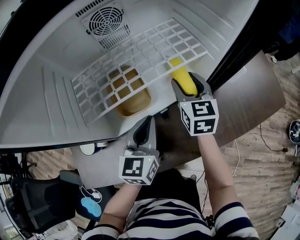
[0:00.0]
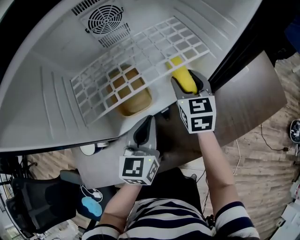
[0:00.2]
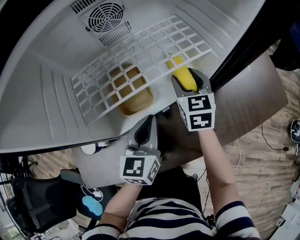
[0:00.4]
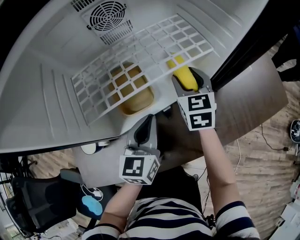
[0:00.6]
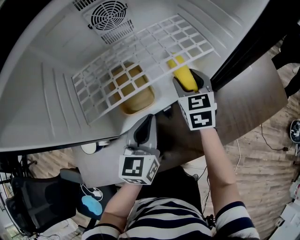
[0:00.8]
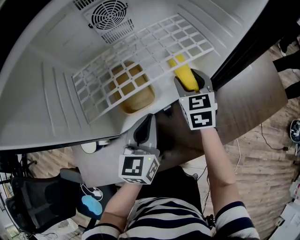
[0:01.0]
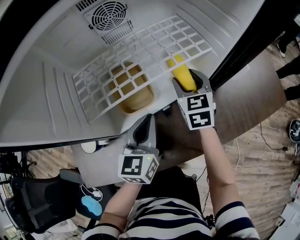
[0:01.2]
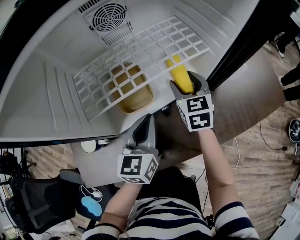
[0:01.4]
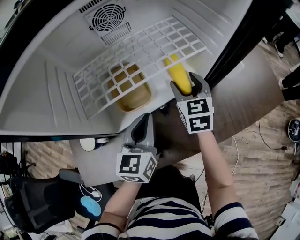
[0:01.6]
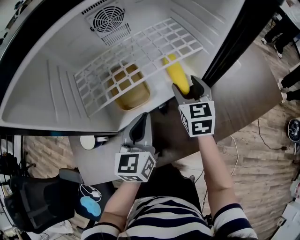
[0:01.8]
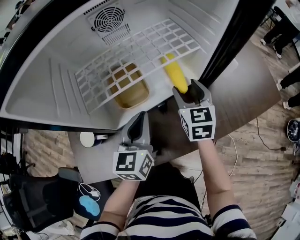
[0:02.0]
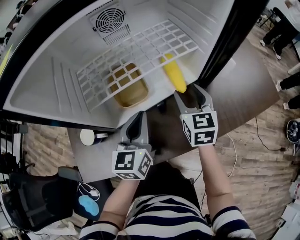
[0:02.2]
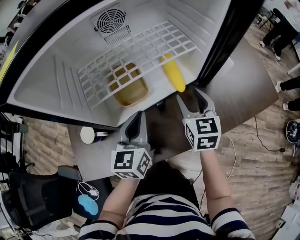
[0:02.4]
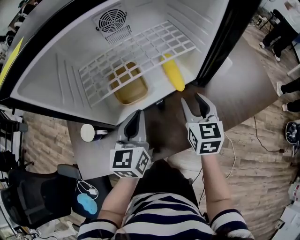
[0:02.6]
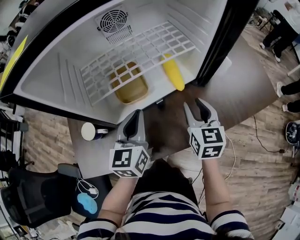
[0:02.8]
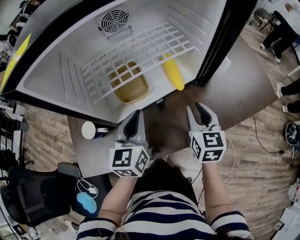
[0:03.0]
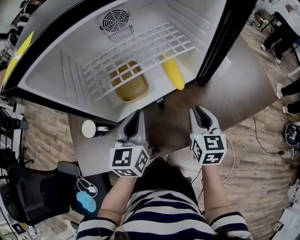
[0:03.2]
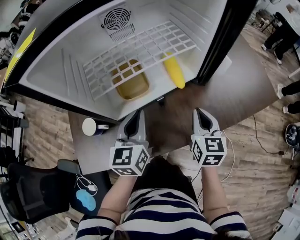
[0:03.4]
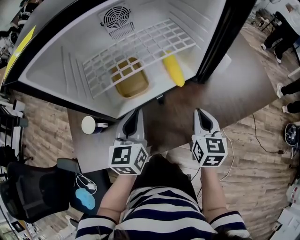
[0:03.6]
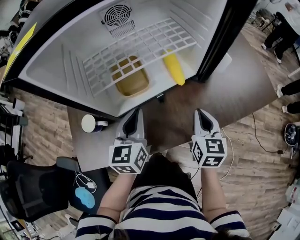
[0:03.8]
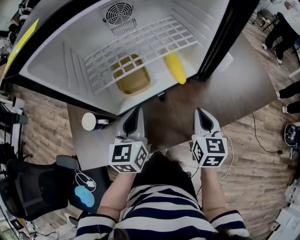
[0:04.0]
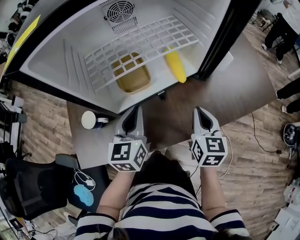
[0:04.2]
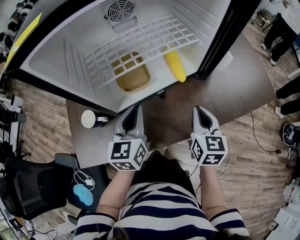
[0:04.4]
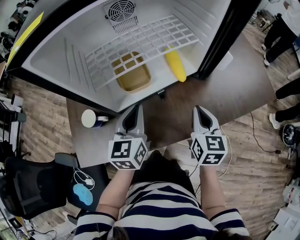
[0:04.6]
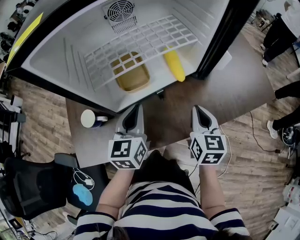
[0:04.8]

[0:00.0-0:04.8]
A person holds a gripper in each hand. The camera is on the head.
0:00.0 to 0:01.6: The grippers move only a little.
0:01.6 to 0:03.2: The right gripper shifts some 15 cm backward and to the right, and closes up, while the left gripper changes place by roughly 5 cm.
0:03.2 to 0:04.8: The grippers move only a little.

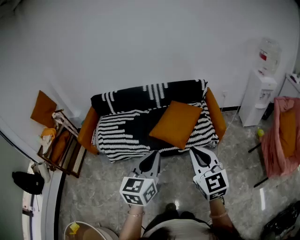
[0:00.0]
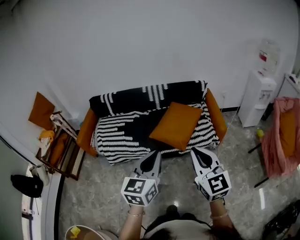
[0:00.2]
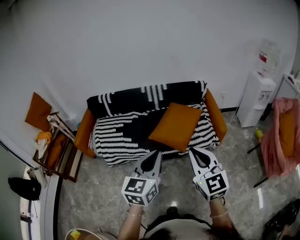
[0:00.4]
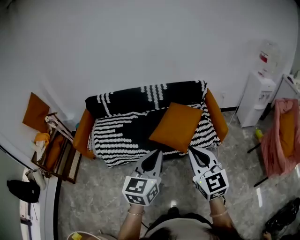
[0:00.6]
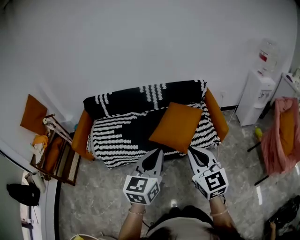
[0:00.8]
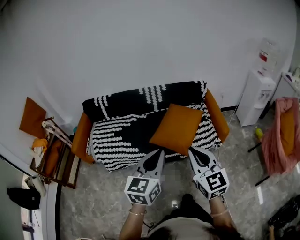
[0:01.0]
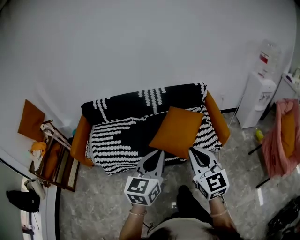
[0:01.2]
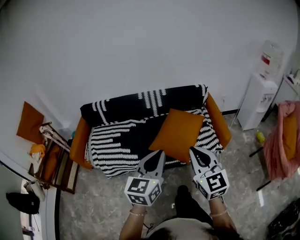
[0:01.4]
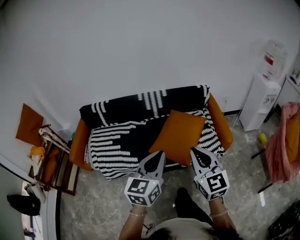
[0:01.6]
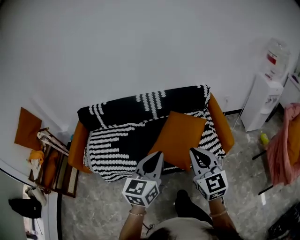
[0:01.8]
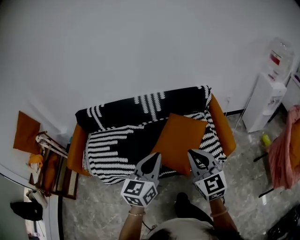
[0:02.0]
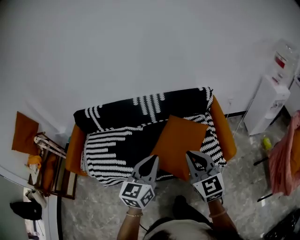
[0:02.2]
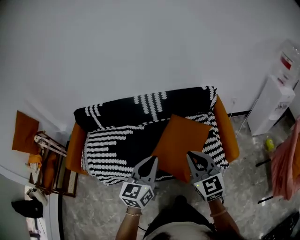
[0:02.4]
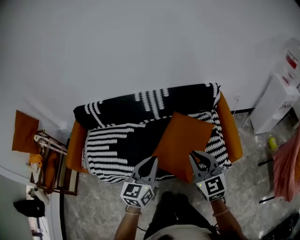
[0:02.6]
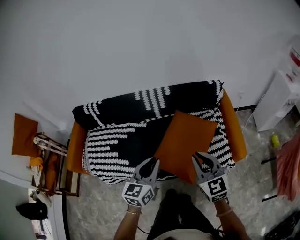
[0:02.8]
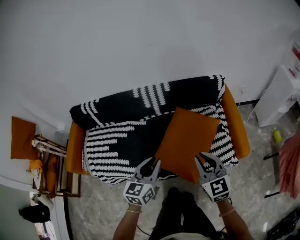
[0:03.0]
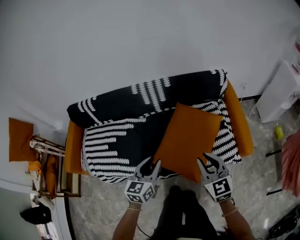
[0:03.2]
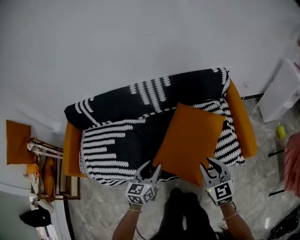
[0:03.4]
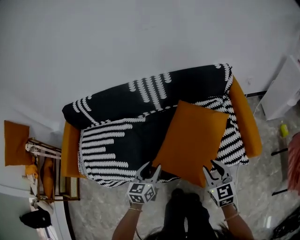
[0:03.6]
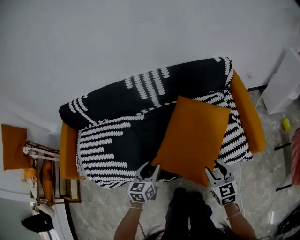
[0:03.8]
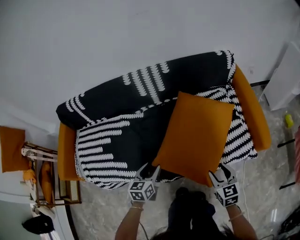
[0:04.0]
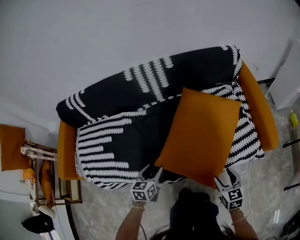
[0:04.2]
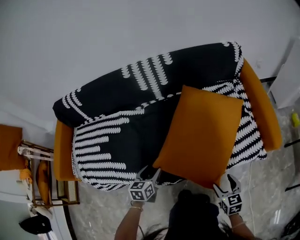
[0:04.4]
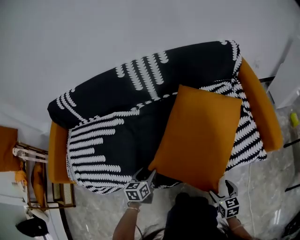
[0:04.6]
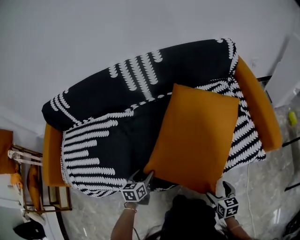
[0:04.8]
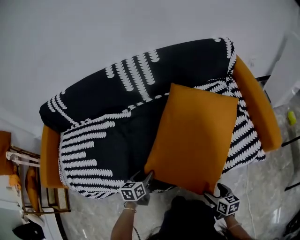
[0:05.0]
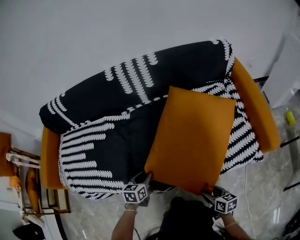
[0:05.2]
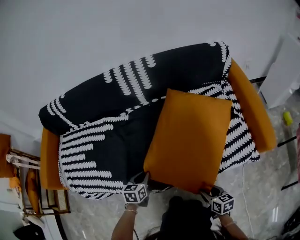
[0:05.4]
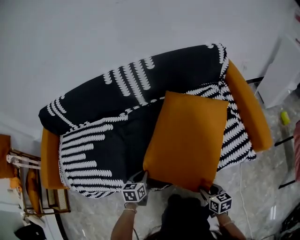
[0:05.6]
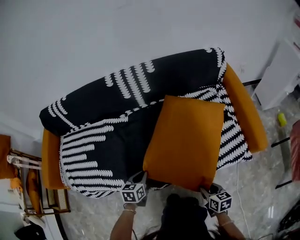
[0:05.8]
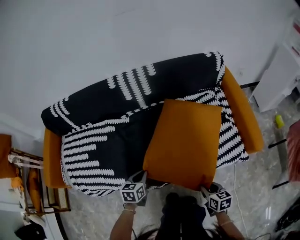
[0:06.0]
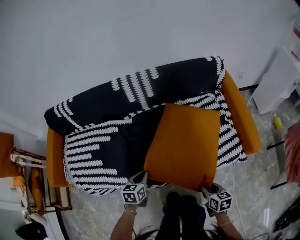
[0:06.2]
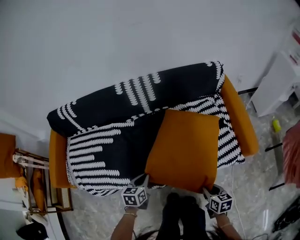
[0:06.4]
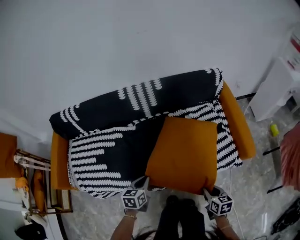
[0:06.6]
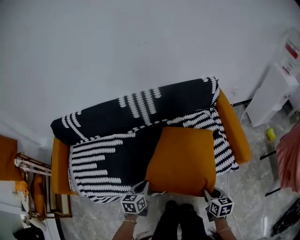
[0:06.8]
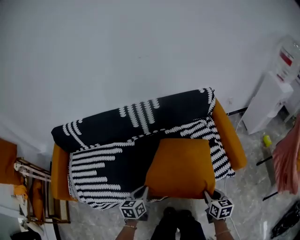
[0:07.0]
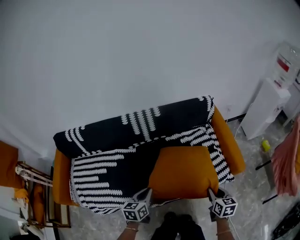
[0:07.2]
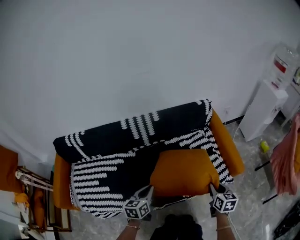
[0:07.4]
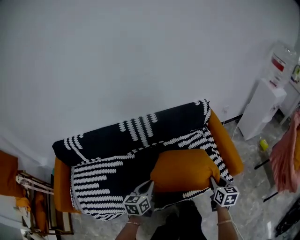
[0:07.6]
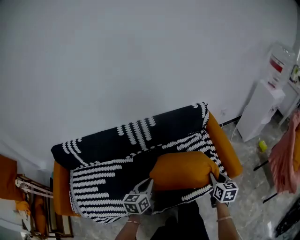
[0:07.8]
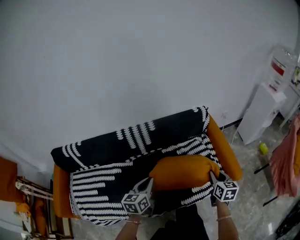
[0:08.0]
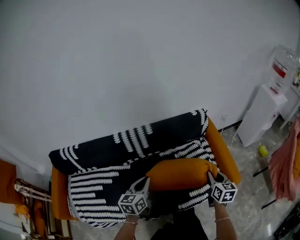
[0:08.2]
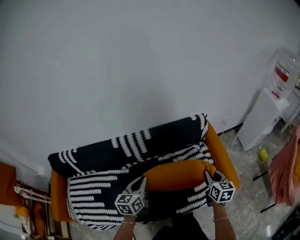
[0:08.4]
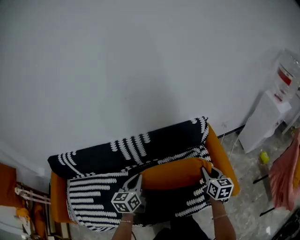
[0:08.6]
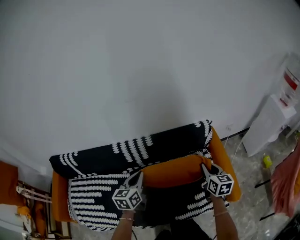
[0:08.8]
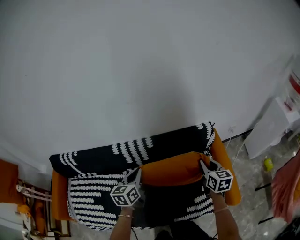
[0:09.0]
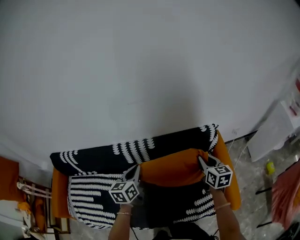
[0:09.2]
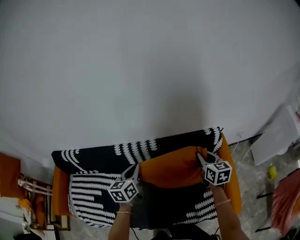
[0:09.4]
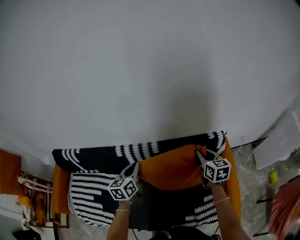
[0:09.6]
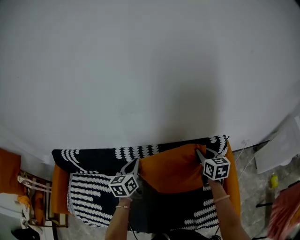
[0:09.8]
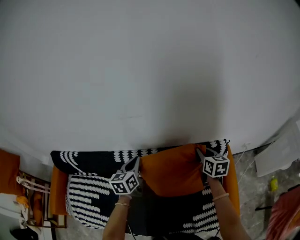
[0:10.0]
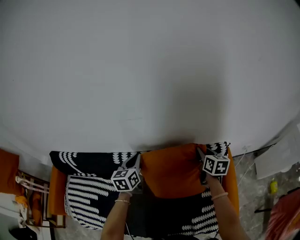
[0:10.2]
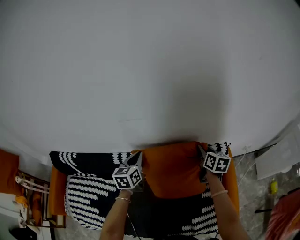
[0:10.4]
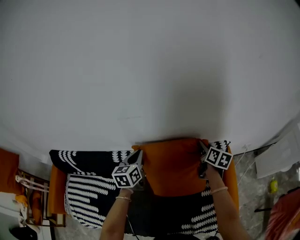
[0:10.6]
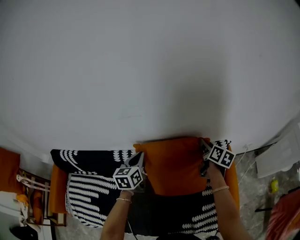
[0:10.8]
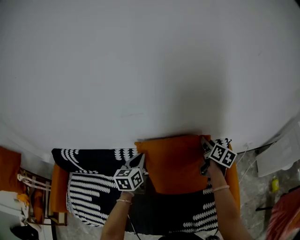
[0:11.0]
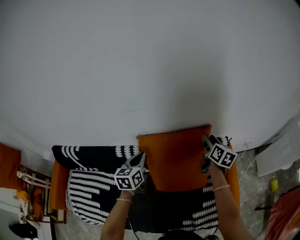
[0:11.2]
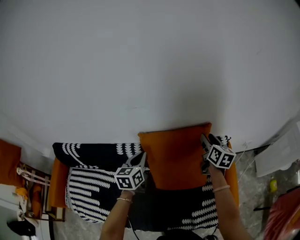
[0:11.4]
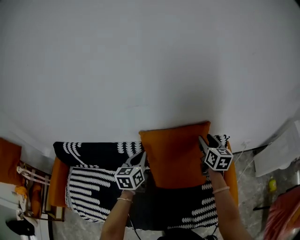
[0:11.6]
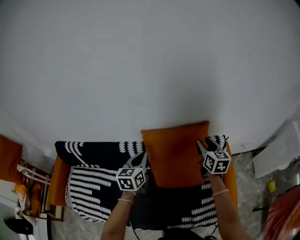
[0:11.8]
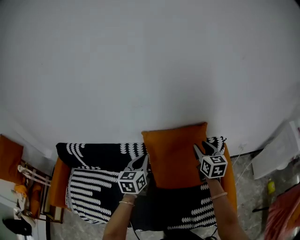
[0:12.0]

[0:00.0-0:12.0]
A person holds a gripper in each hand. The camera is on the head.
0:00.0 to 0:01.6: The grippers both shift forward by roughly 25 cm.
0:01.6 to 0:03.0: The grippers both shift forward and downward by about 35 cm.
0:03.0 to 0:04.4: The two grippers go approximately 50 cm downward. The left gripper rotates approximately 30 degrees, and opens its fingers. Meanwhile the right gripper turns by roughly 30 degrees, and opens.
0:04.4 to 0:06.0: The left gripper reaches approximately 10 cm downward, then returns, and closes; the right gripper travels downward and back again, about 10 cm each way, and closes.
0:06.0 to 0:07.6: Both grippers move upward, some 30 cm. The right gripper changes its angle by about 30 degrees. Meanwhile the left gripper swivels about 20 degrees.
0:07.6 to 0:09.0: The grippers both shift forward by some 30 cm.
0:09.0 to 0:10.4: Both grippers travel together forward, approximately 25 cm.
0:10.4 to 0:12.0: The grippers both shift backward and upward by approximately 20 cm. The right gripper changes its angle by some 20 degrees.

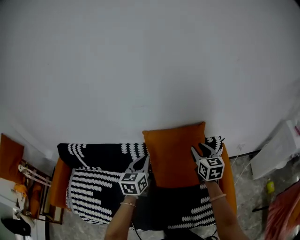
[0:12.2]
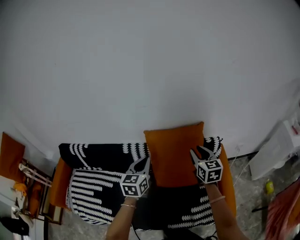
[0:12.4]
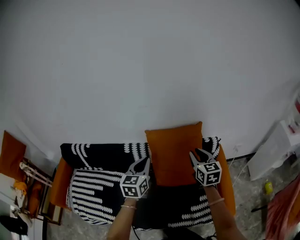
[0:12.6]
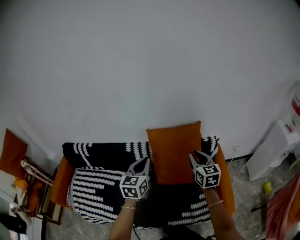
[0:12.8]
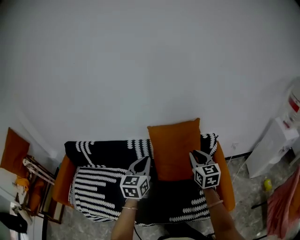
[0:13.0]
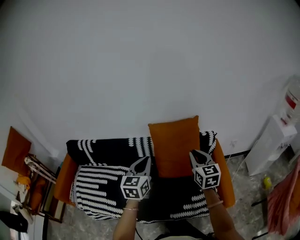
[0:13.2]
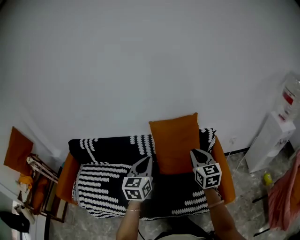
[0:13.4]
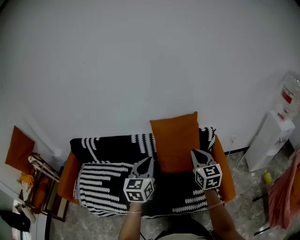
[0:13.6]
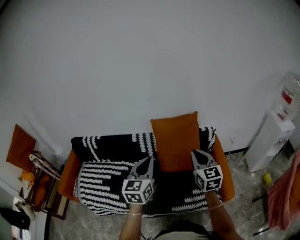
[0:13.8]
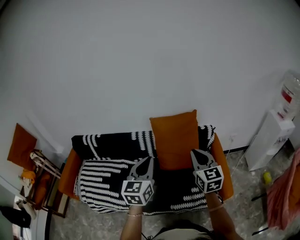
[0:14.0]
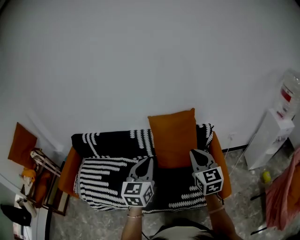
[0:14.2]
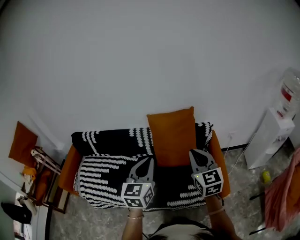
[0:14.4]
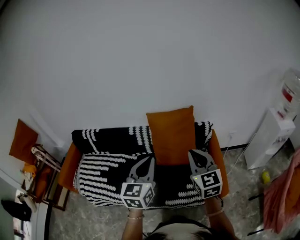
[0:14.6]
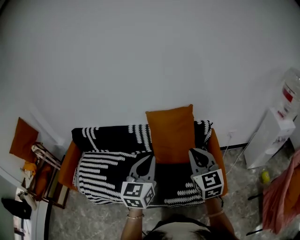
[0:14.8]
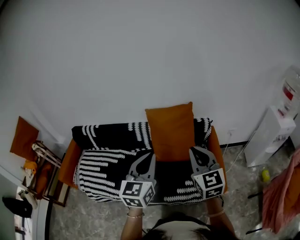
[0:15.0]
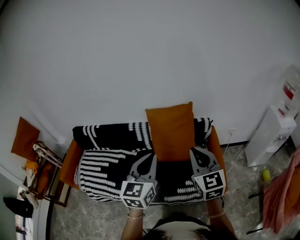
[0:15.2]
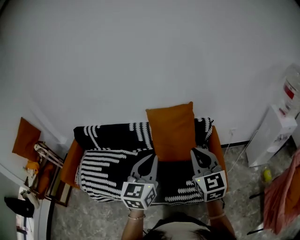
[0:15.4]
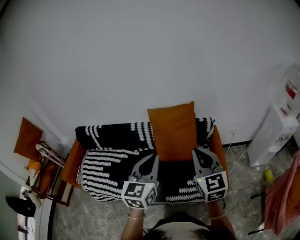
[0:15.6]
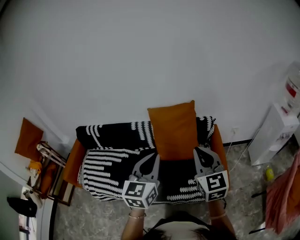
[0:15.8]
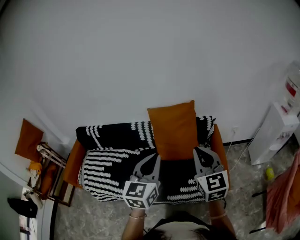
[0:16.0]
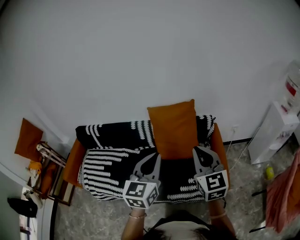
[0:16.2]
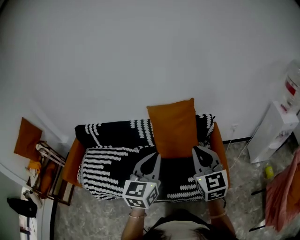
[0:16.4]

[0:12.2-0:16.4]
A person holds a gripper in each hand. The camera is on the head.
0:12.2 to 0:13.6: The grippers both shift backward by about 35 cm. The right gripper closes.
0:13.6 to 0:15.0: The left gripper goes some 15 cm to the right, backward and upward; the right gripper travels backward, upward and to the right by roughly 15 cm.
0:15.0 to 0:16.4: There are only small adjustments of the grippers.

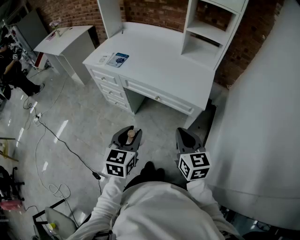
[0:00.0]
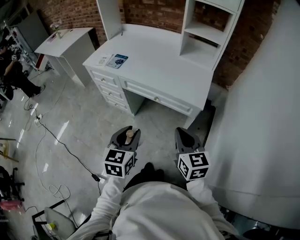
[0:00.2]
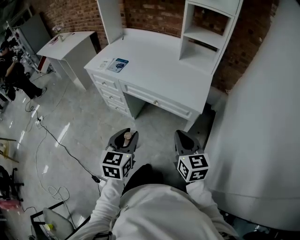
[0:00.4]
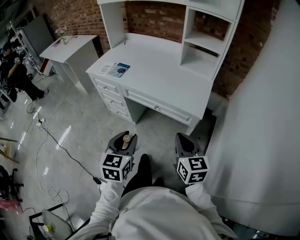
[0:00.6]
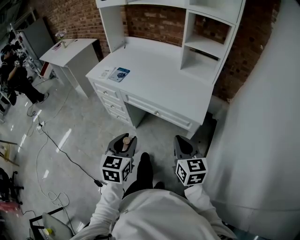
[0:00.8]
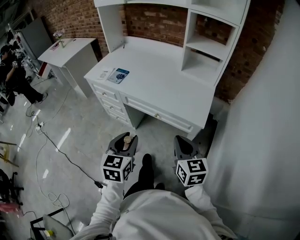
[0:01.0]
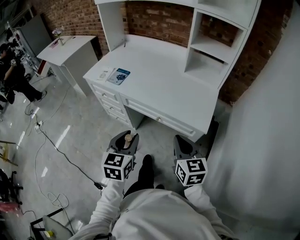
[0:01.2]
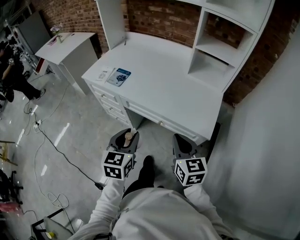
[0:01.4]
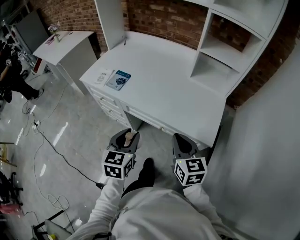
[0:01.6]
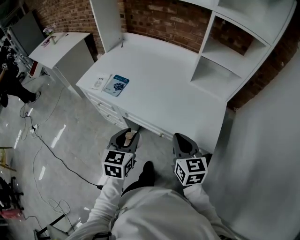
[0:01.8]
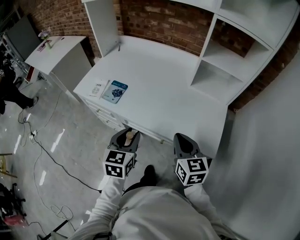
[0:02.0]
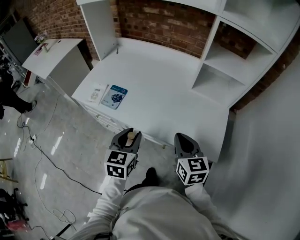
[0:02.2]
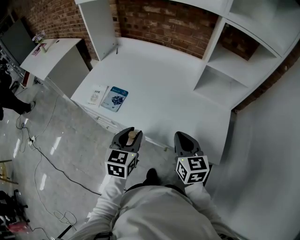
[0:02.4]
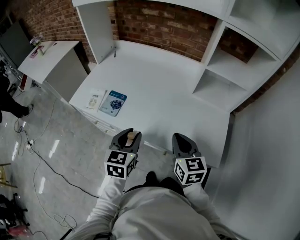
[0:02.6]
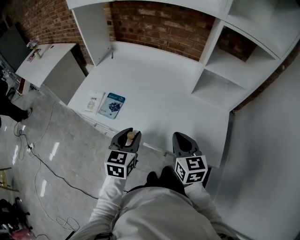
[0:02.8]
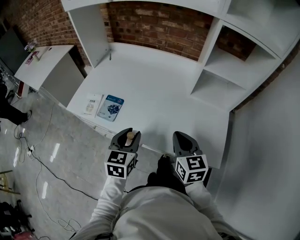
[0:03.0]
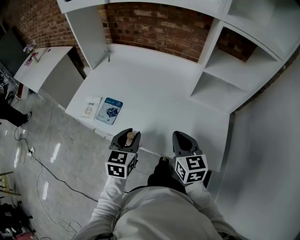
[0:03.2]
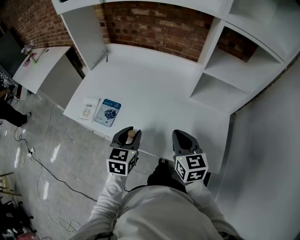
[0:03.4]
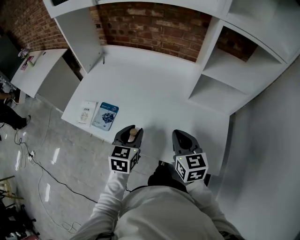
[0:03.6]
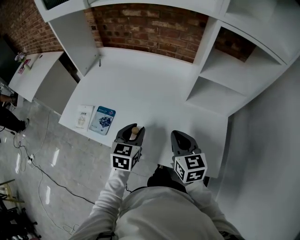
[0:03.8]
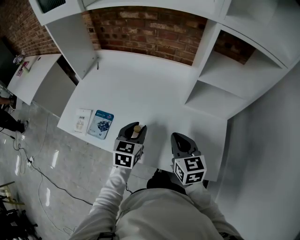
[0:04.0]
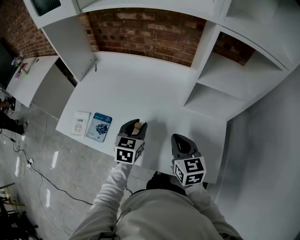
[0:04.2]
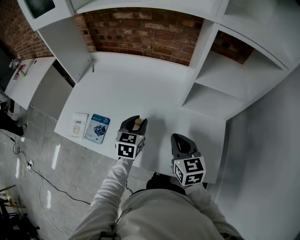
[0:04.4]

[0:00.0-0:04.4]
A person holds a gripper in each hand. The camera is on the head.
0:00.0 to 0:01.4: The grippers both shift forward by approximately 15 cm.
0:01.4 to 0:03.0: Both grippers travel together forward, approximately 25 cm.
0:03.0 to 0:04.4: The left gripper travels forward and to the right by about 20 cm. The right gripper heads forward, covering approximately 10 cm.
